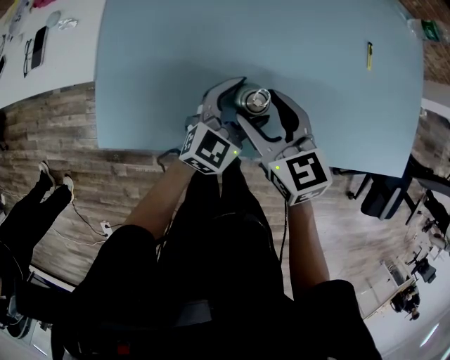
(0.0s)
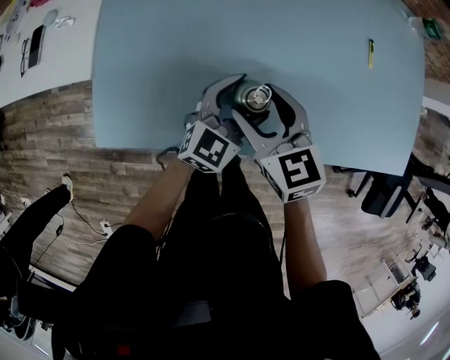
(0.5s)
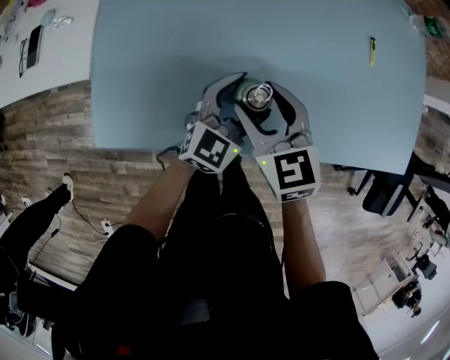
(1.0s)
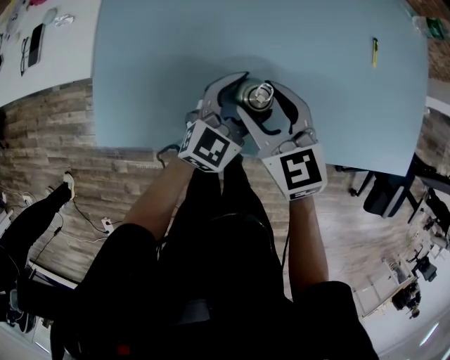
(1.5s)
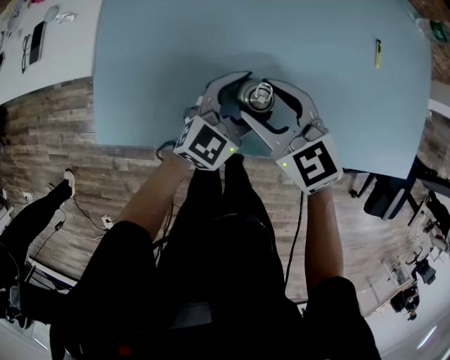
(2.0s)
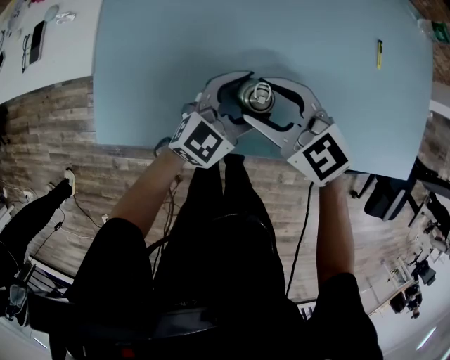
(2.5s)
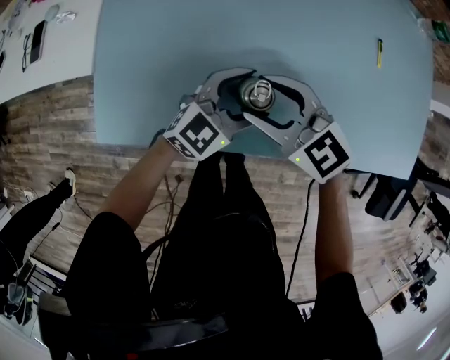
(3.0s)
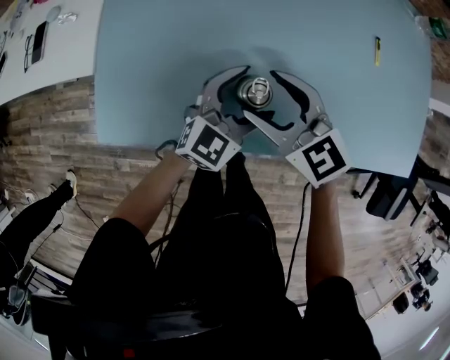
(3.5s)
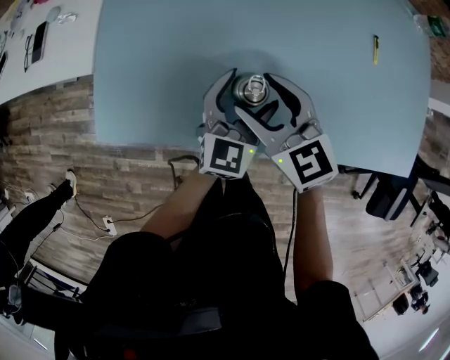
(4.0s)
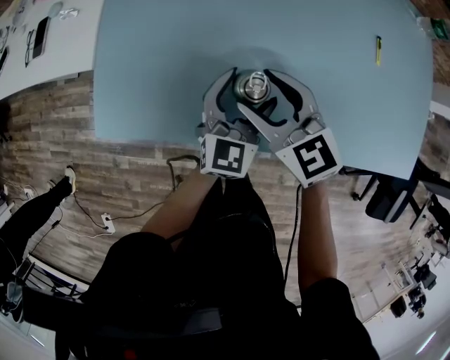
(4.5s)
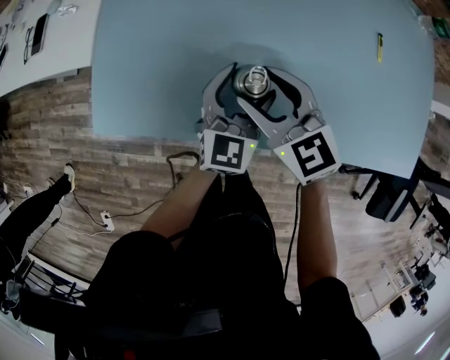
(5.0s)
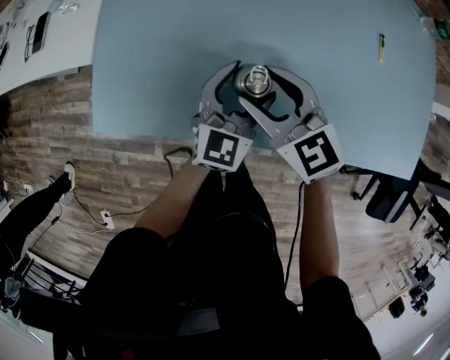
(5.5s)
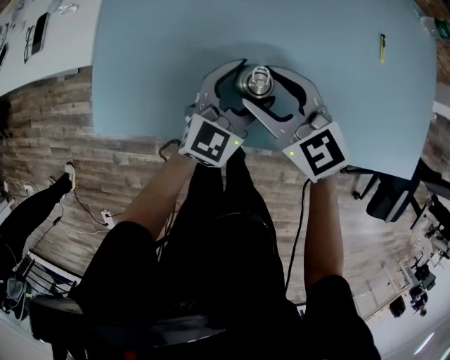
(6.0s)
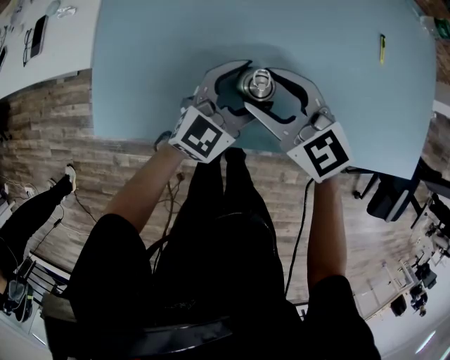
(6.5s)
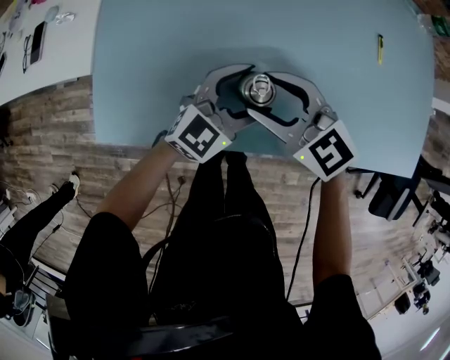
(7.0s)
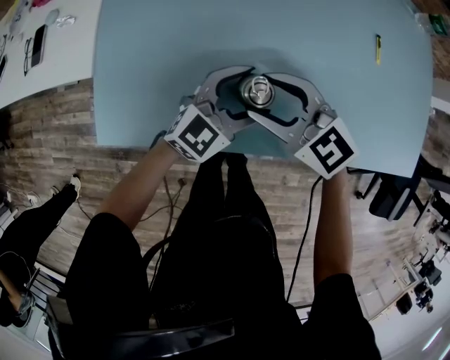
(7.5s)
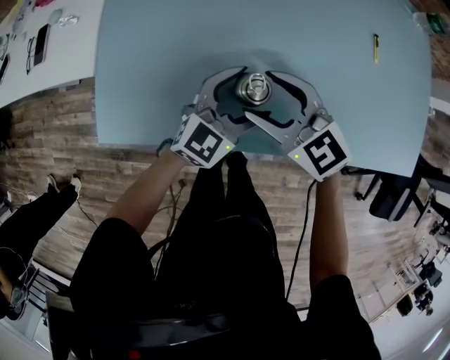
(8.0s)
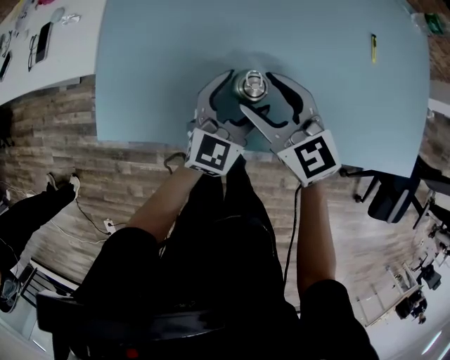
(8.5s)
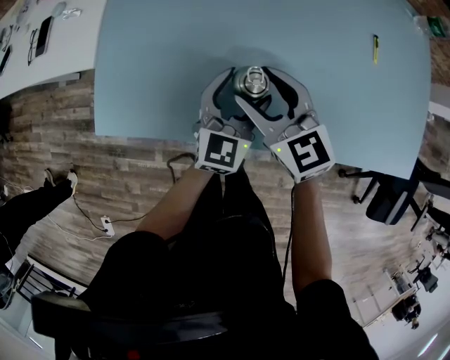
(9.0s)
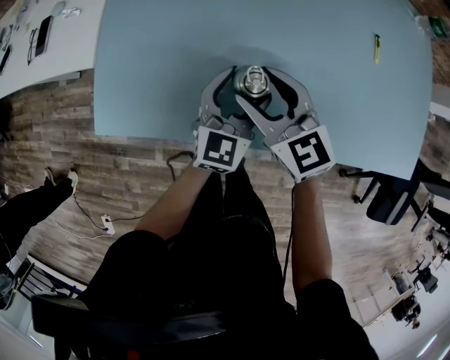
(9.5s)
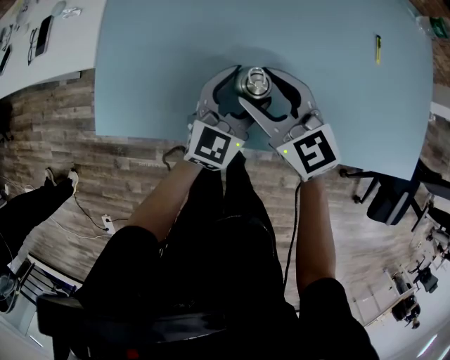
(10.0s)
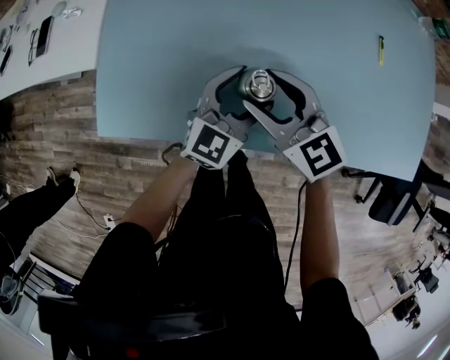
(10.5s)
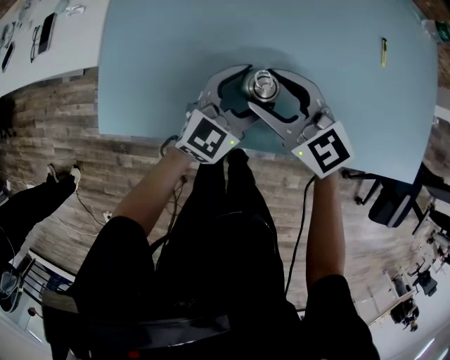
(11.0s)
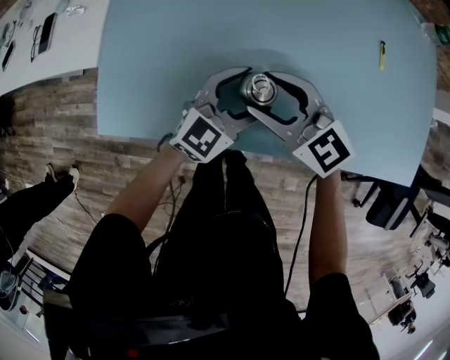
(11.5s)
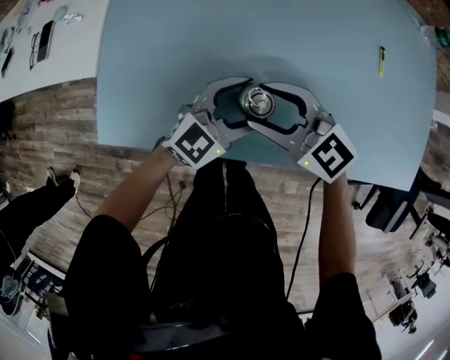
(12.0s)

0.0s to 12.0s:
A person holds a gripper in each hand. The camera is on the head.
0.0s to 2.0s: The right gripper turns by roughly 20 degrees.
2.0s to 4.0s: The left gripper rotates roughly 20 degrees.
4.0s to 6.0s: The grippers move only a little.
6.0s to 8.0s: The grippers move only a little.
10.0s to 12.0s: The left gripper swivels about 20 degrees.

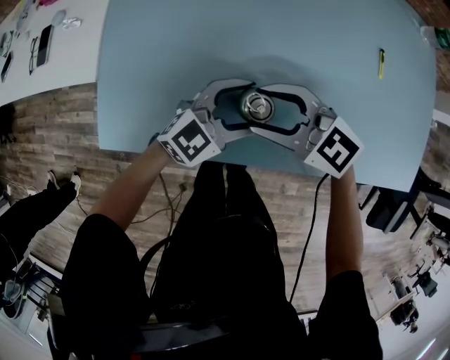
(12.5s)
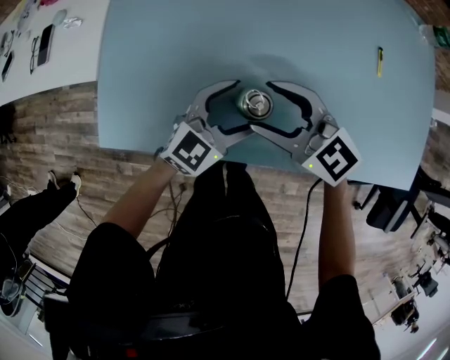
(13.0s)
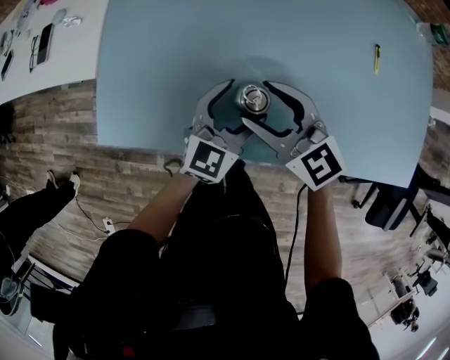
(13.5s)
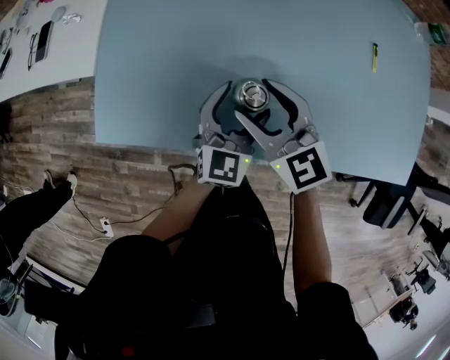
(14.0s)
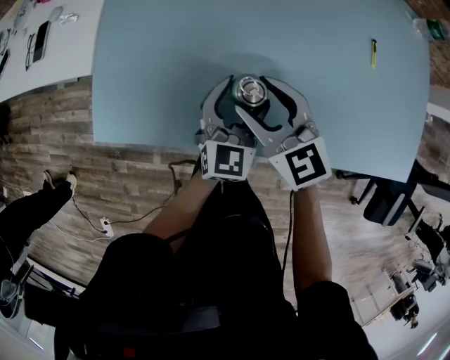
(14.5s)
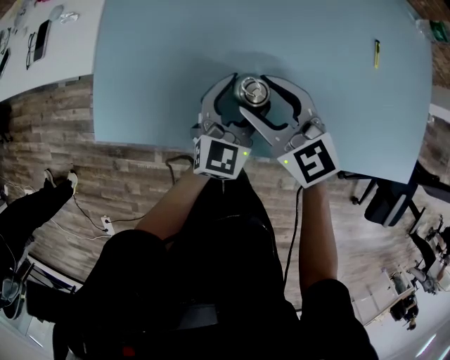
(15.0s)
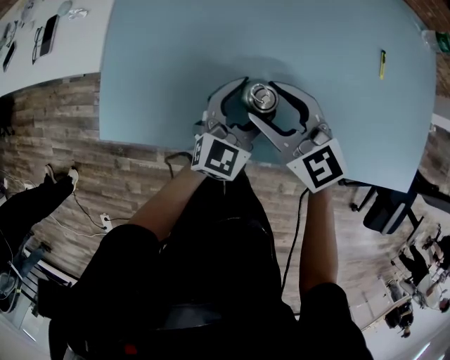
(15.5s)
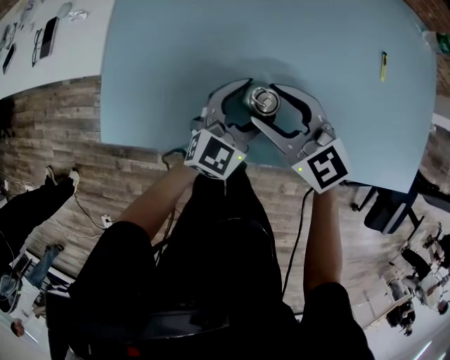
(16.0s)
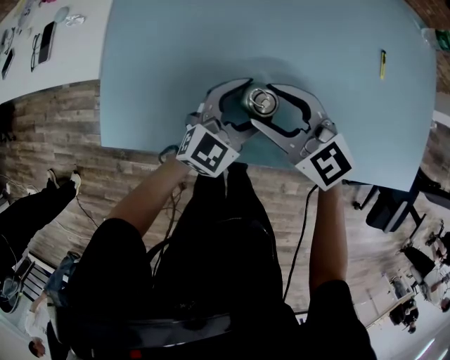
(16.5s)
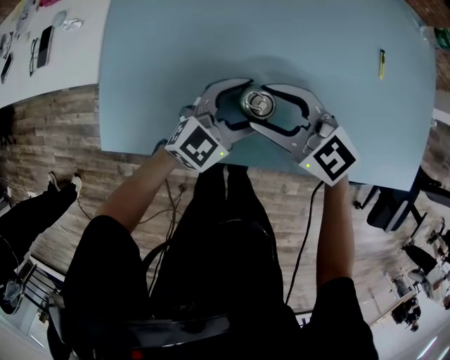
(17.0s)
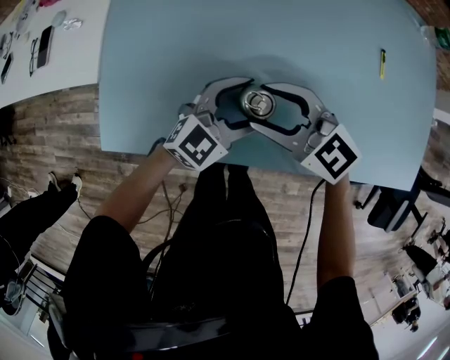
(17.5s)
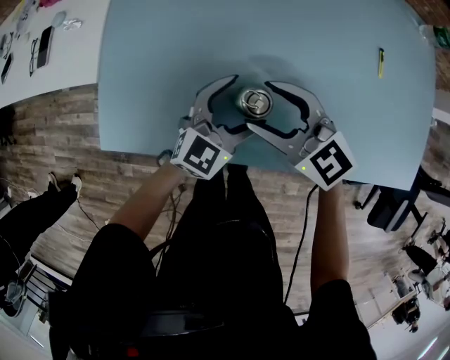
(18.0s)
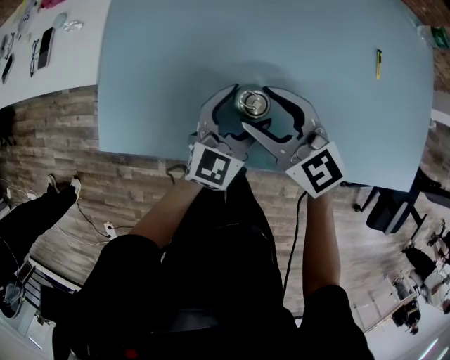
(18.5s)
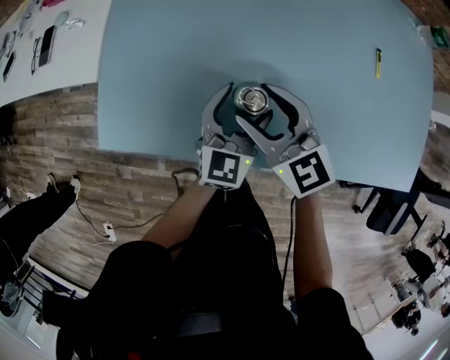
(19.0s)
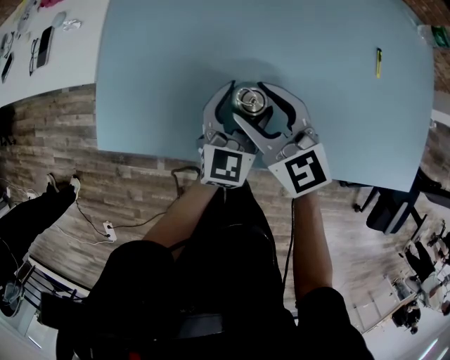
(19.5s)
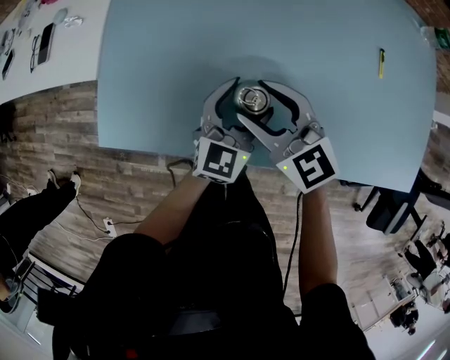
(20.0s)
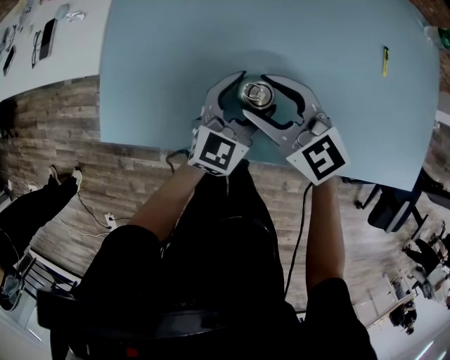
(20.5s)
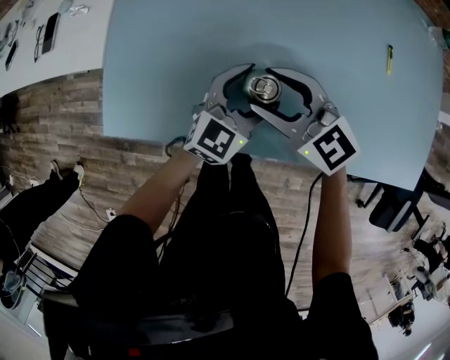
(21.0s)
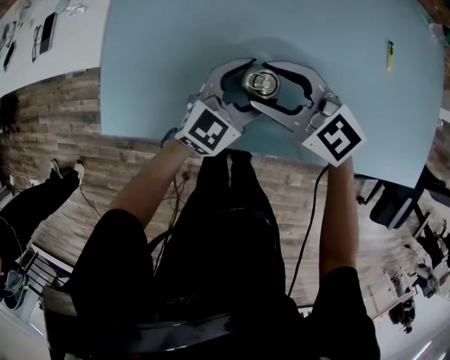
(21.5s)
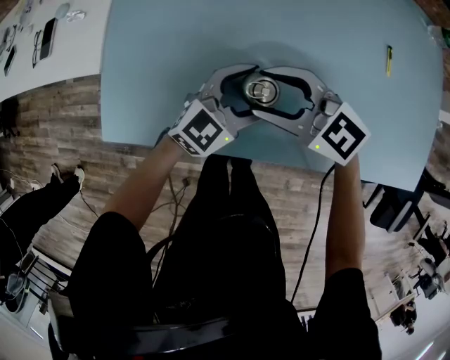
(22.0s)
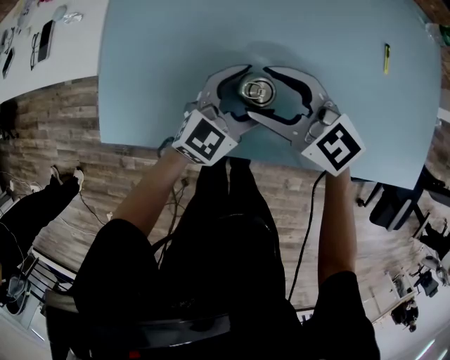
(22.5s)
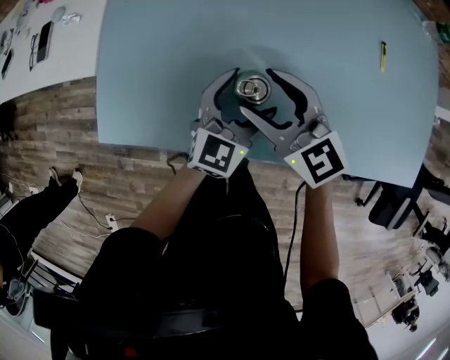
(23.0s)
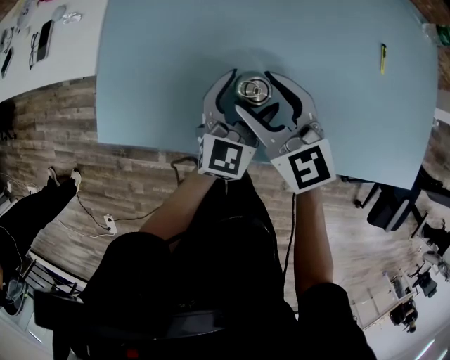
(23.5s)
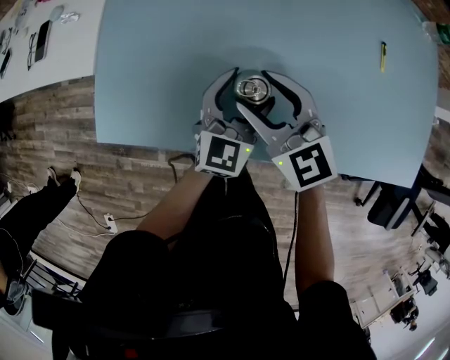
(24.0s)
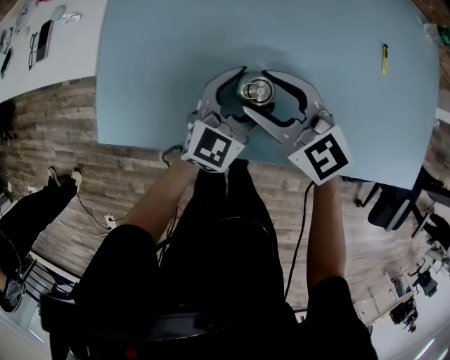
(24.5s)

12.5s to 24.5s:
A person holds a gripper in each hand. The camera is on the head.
12.5s to 14.5s: The right gripper changes its angle by about 30 degrees, while the left gripper turns by about 40 degrees.
14.5s to 16.5s: The left gripper rotates roughly 30 degrees.
16.5s to 18.5s: The grippers make only small movements.
18.5s to 20.5s: The grippers stay close to where they were, moving slightly.

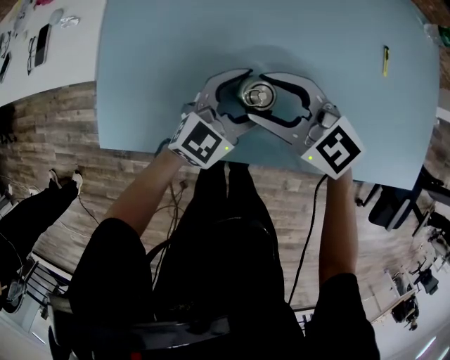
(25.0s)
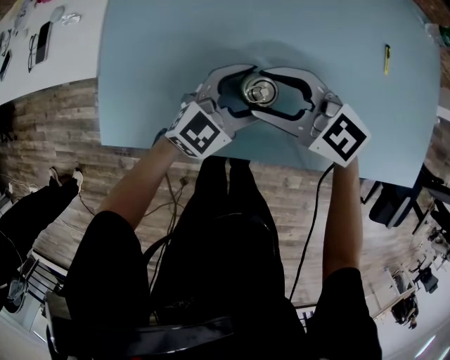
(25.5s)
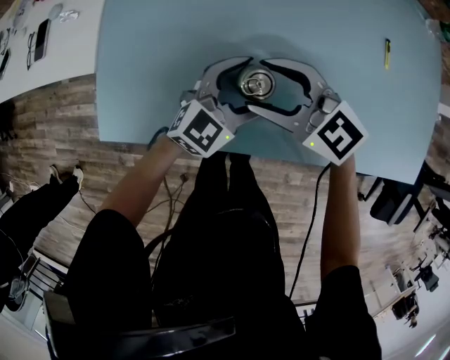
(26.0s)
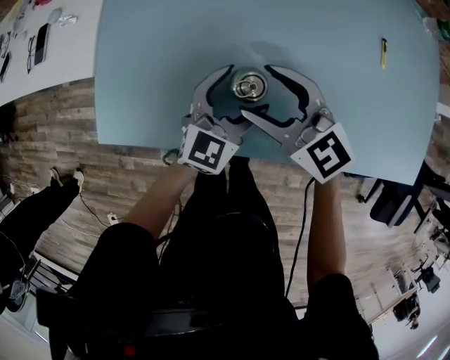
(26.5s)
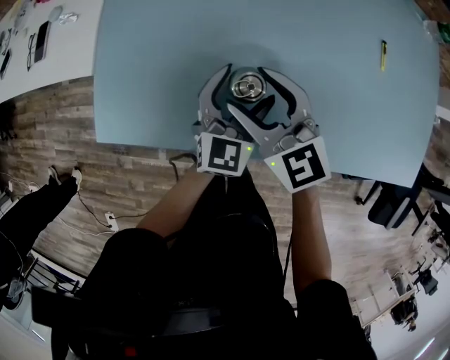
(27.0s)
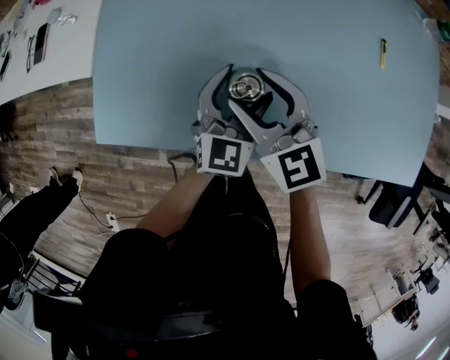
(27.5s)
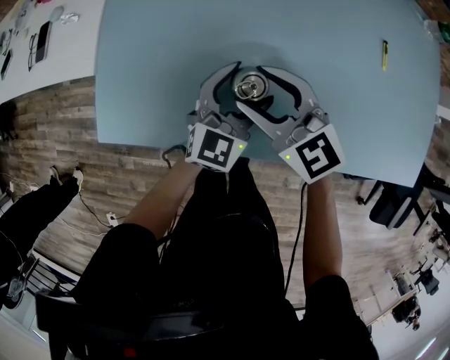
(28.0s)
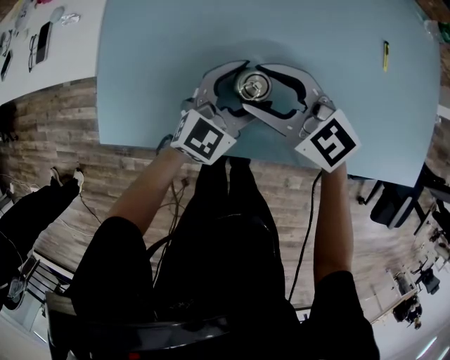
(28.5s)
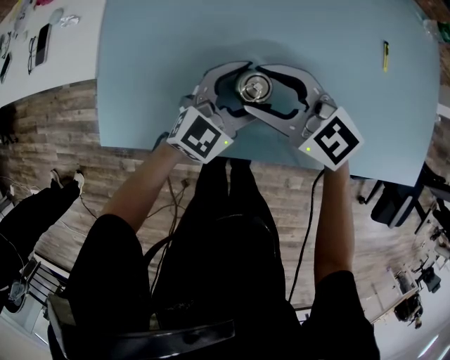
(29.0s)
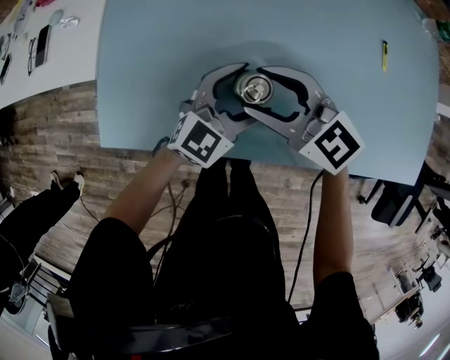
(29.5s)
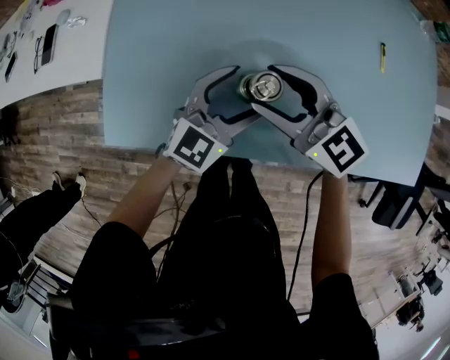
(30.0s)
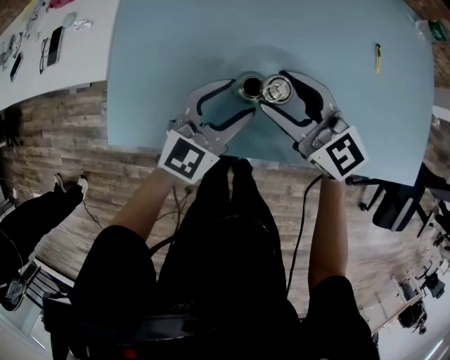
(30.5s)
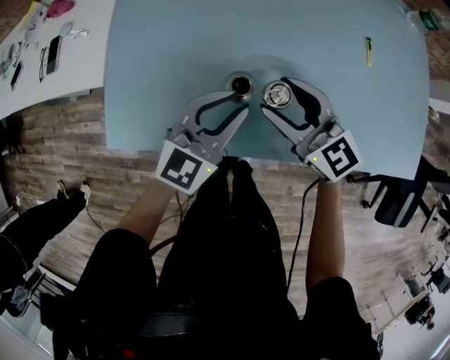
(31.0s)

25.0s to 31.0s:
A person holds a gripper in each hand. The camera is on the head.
25.0s to 27.0s: The left gripper turns by approximately 30 degrees. The right gripper changes its angle by some 20 degrees.
27.0s to 29.0s: The right gripper rotates roughly 20 degrees; the left gripper changes its angle by about 30 degrees.
29.0s to 31.0s: The left gripper shifts about 5 cm upward, and closes its fingers. The right gripper goes some 5 cm to the right.
